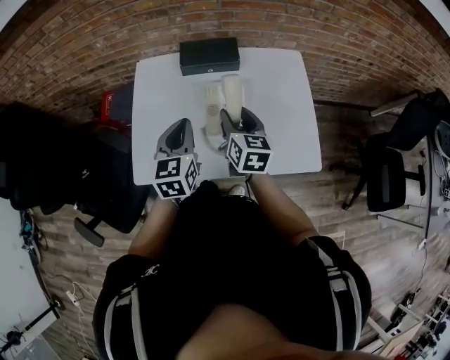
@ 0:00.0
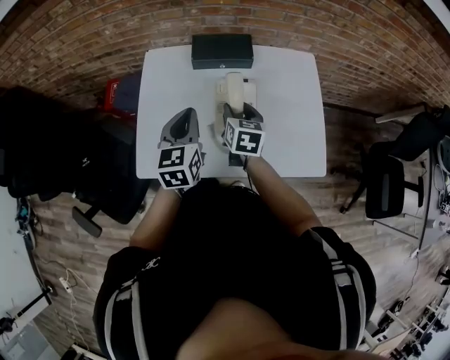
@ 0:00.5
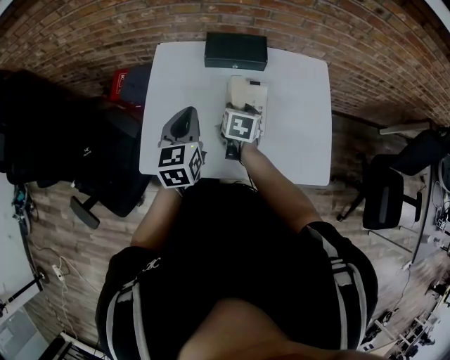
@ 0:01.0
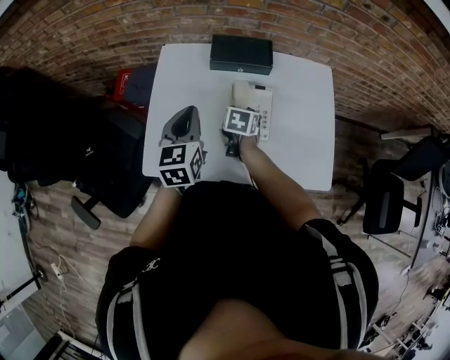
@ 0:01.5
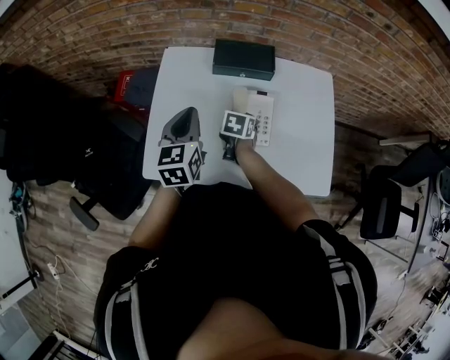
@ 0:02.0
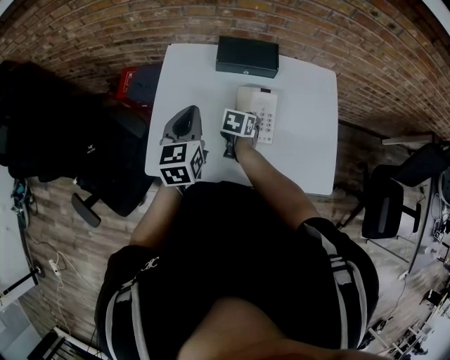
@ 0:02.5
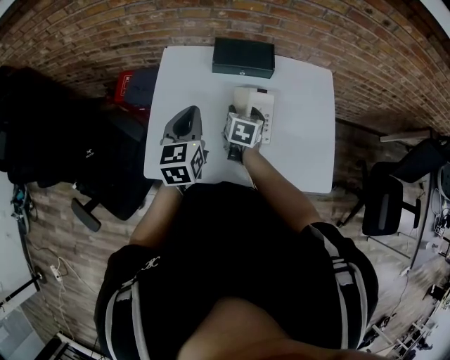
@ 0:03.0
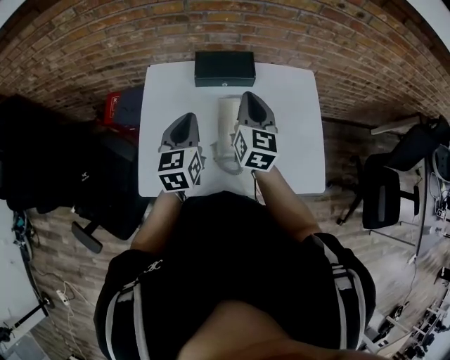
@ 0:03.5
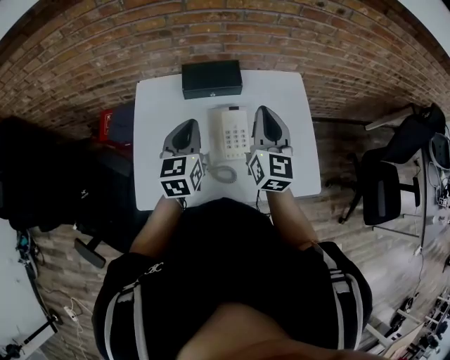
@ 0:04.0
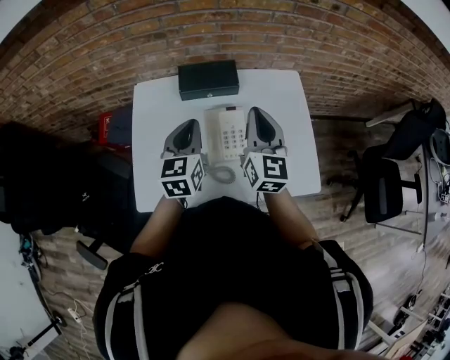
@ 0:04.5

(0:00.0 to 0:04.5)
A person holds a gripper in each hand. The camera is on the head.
0:00.0 - 0:02.0: The left gripper shifts roughly 10 cm to the left and forward; the right gripper moves downward and forward, roughly 20 cm, and tilts its fingers some 30 degrees downward.
0:02.0 - 0:04.5: The left gripper goes approximately 10 cm to the right; the right gripper moves upward and to the right, approximately 30 cm, points its fingers about 50 degrees further upward, and closes its fingers.

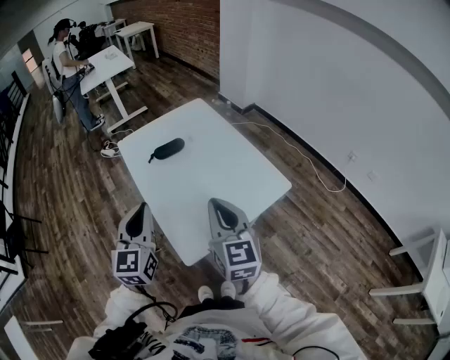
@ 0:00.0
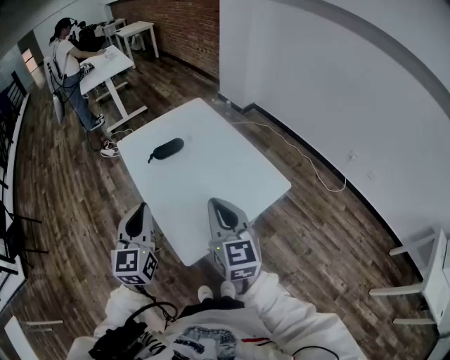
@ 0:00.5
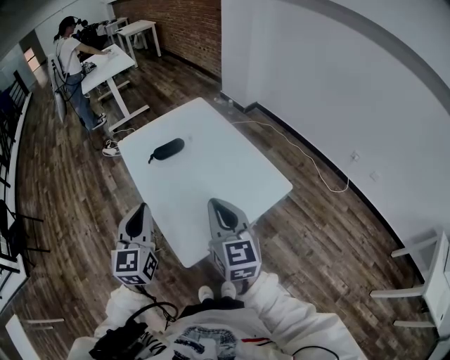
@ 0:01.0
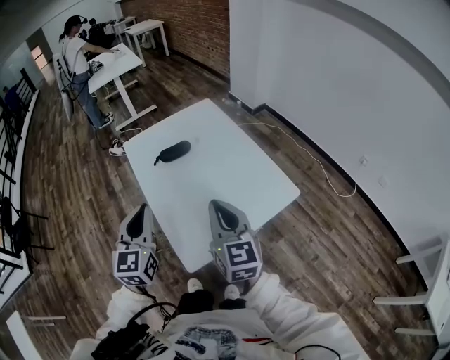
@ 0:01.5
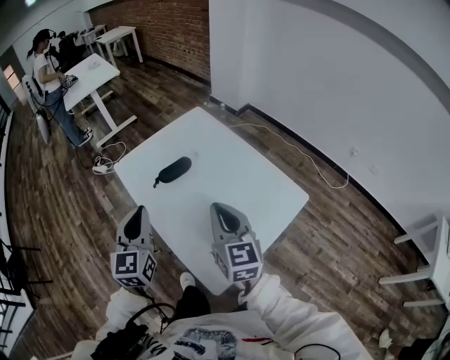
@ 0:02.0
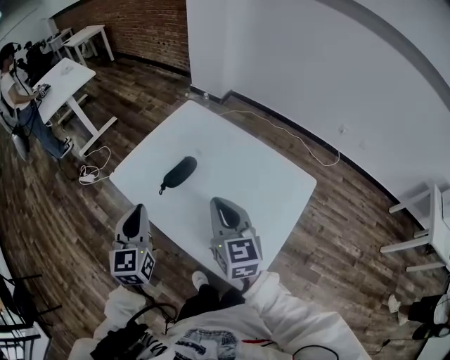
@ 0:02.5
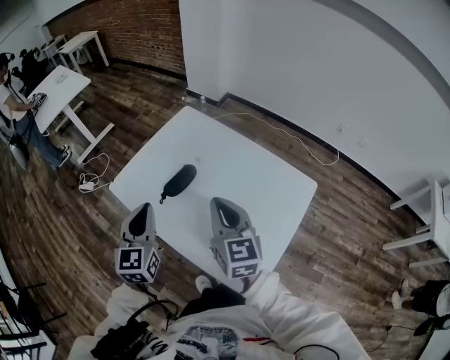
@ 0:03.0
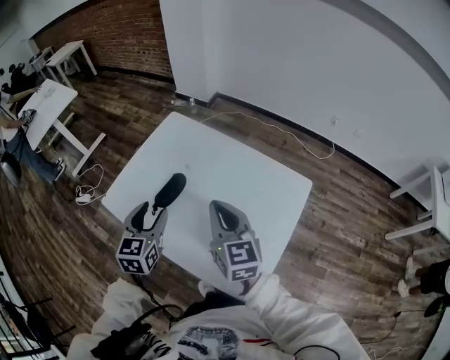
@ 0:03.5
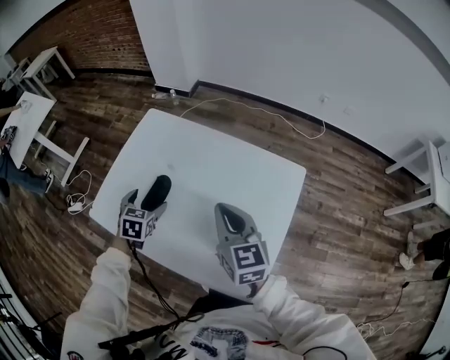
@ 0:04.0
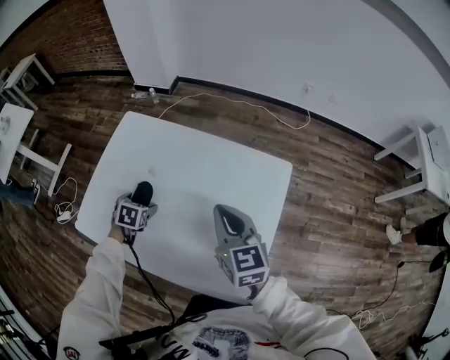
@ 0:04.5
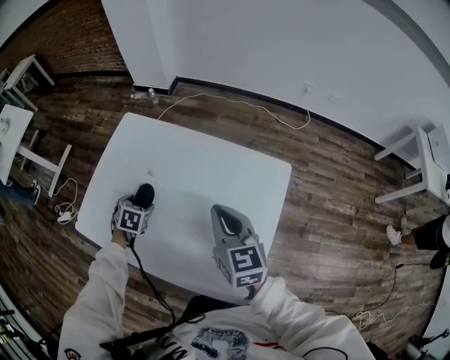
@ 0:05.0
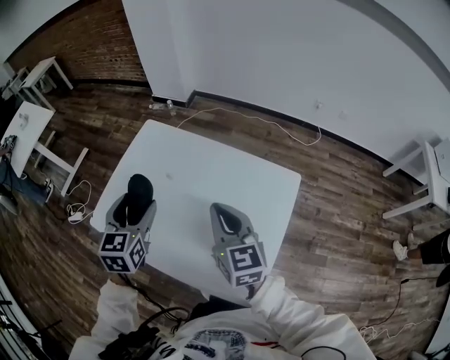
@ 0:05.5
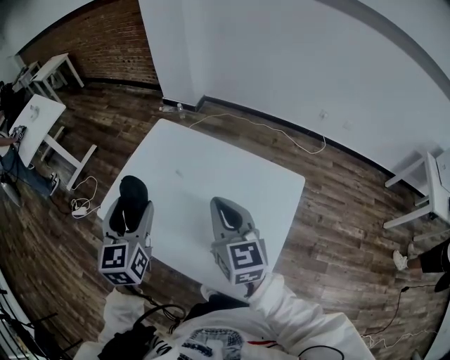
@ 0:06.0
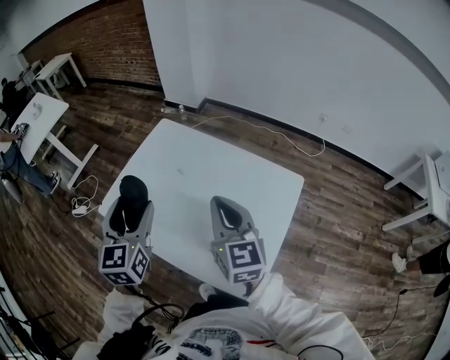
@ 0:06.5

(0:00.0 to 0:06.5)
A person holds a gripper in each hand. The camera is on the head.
0:00.0 - 0:02.0: The grippers both shift forward and to the left by about 15 cm.
0:02.0 - 0:04.5: The right gripper ends up roughly 15 cm from where it was, and changes its angle by some 30 degrees. Meanwhile the left gripper travels downward by roughly 30 cm, points its fingers approximately 60 degrees further downward, and opens up.
0:04.5 - 0:06.5: The left gripper heads upward, covering some 35 cm, and tips its fingers upward by about 50 degrees. The right gripper shifts about 10 cm upward and to the left.

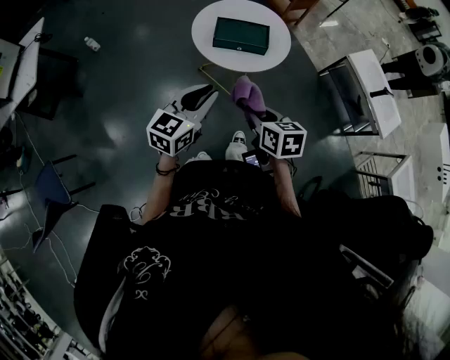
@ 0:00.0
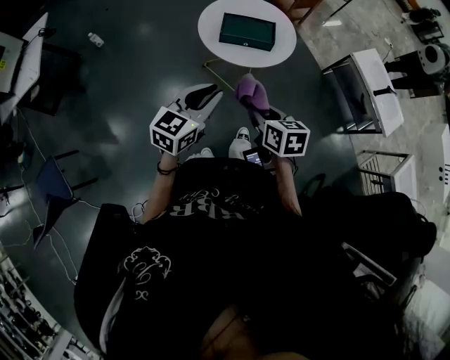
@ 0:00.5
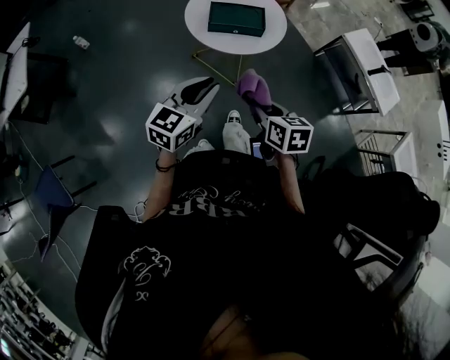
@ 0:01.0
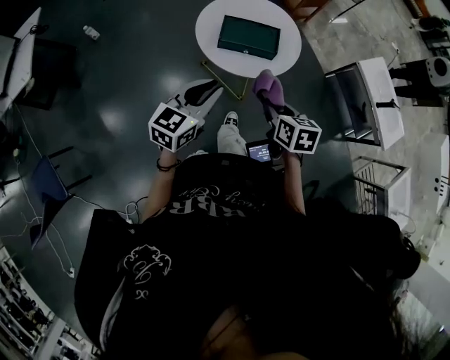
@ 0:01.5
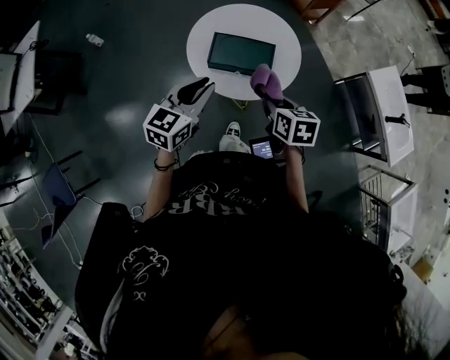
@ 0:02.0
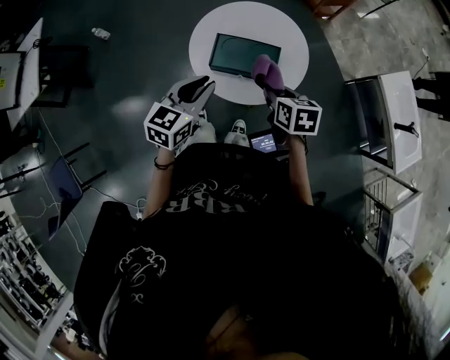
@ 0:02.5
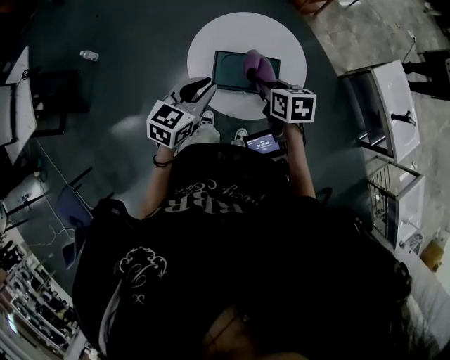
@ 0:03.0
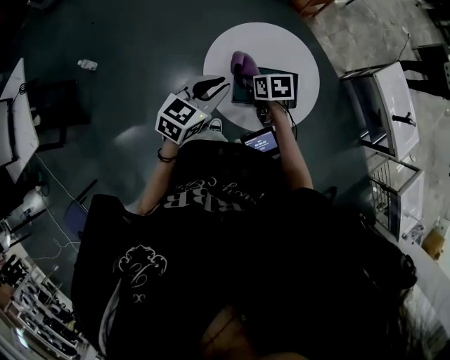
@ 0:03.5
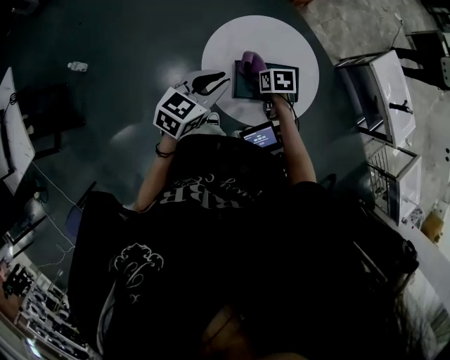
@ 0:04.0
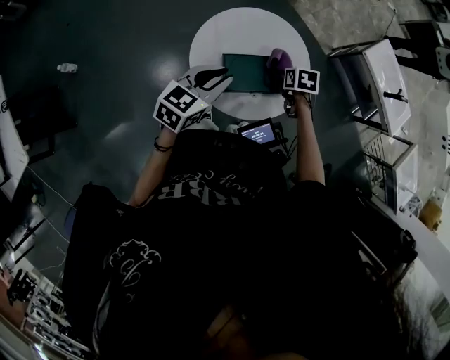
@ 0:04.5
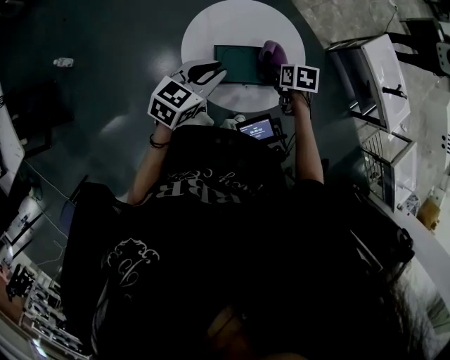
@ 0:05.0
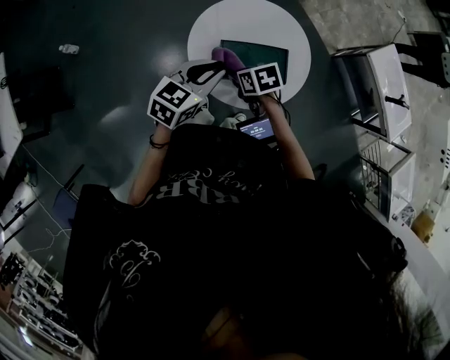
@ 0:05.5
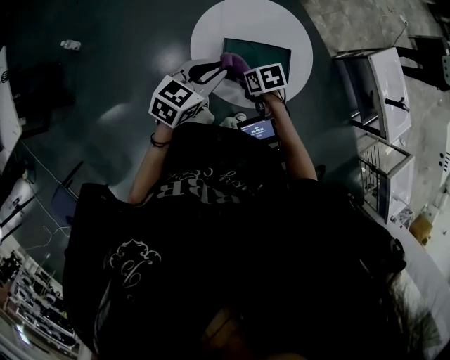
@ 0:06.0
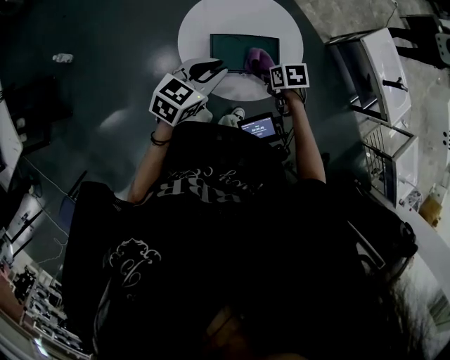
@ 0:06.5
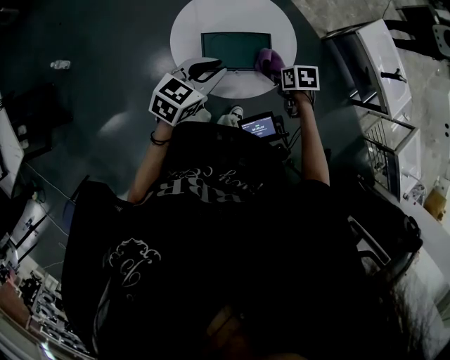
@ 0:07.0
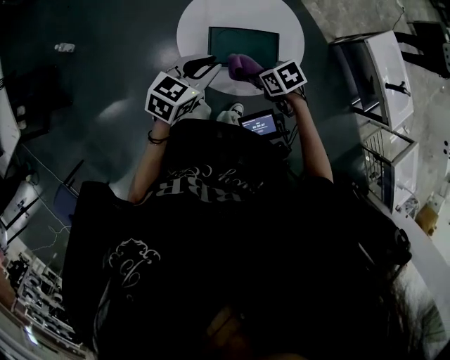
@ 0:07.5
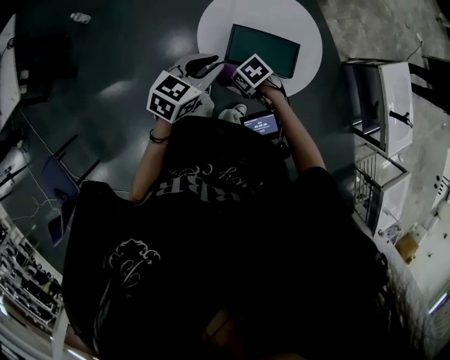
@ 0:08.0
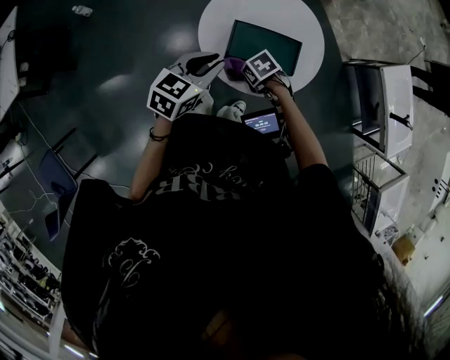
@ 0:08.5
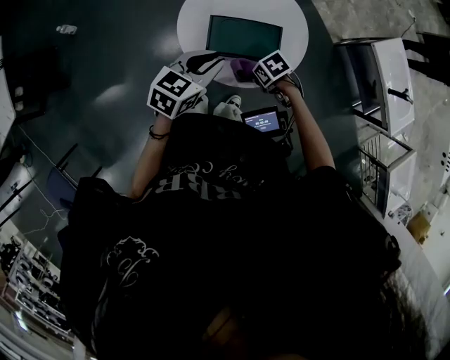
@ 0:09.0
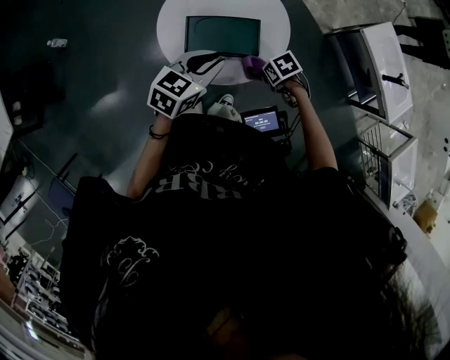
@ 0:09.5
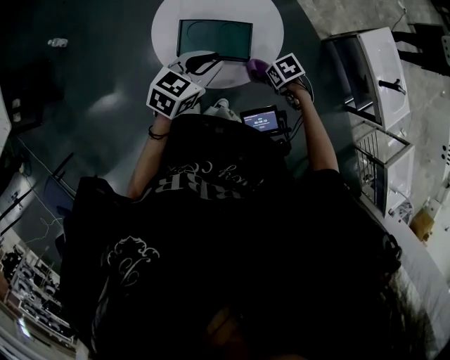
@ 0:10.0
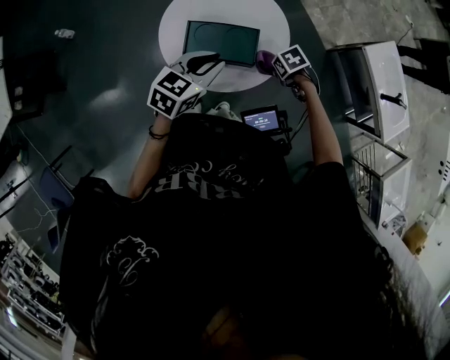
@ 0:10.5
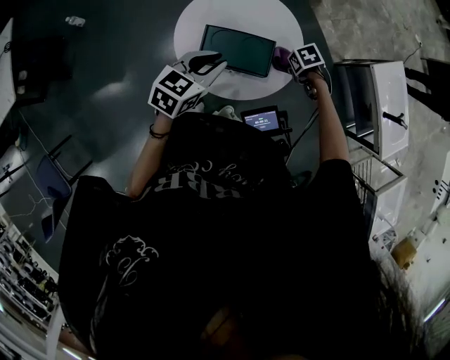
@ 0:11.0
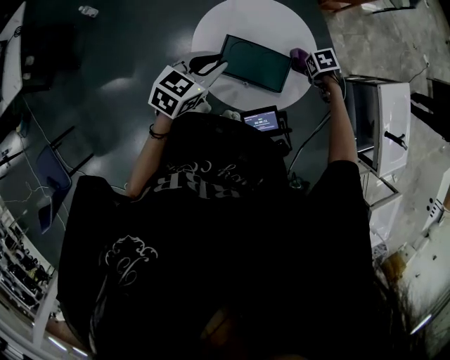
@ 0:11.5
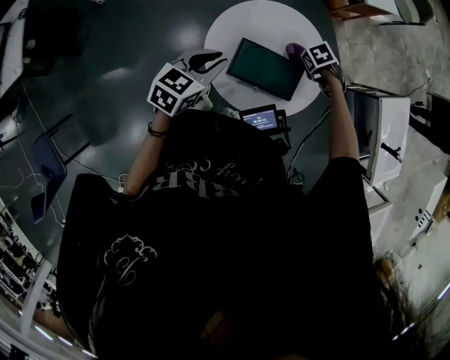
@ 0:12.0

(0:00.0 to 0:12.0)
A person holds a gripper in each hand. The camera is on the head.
0:00.0 - 0:02.0: Both grippers move forward, approximately 20 cm.
0:02.0 - 0:04.0: The right gripper heads forward, downward and to the left, covering about 30 cm, and swivels some 20 degrees. Meanwhile the left gripper travels forward and to the left by about 20 cm, and swivels some 20 degrees.
0:06.0 - 0:08.0: The right gripper changes its angle by about 30 degrees.
0:08.0 - 0:10.0: The left gripper moves some 15 cm. The right gripper changes place by about 25 cm, and rotates about 20 degrees.
0:10.0 - 0:12.0: The left gripper changes place by approximately 20 cm. Meanwhile the right gripper changes place by about 25 cm, and swivels about 20 degrees.

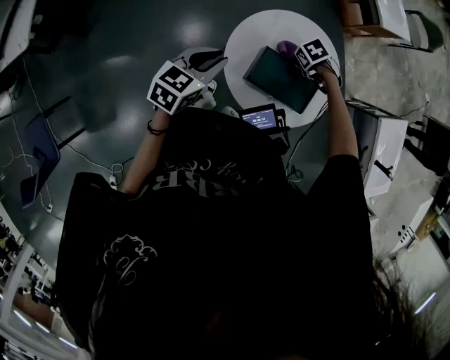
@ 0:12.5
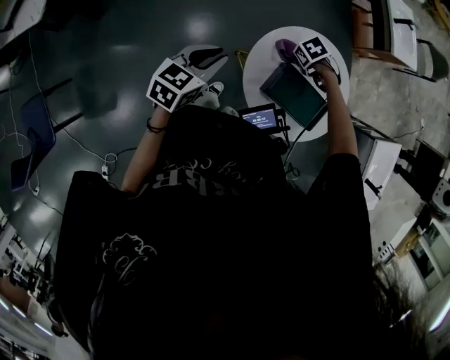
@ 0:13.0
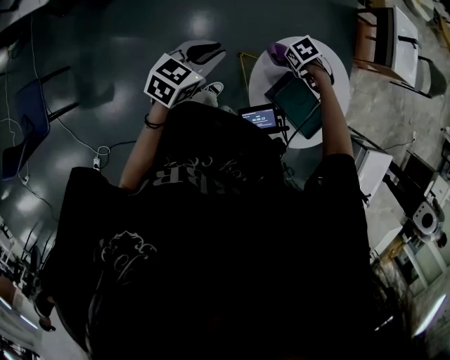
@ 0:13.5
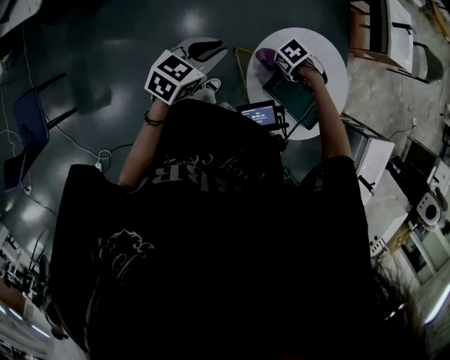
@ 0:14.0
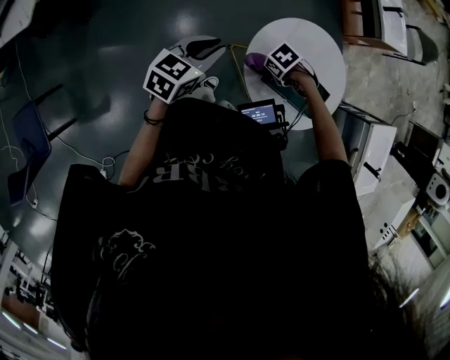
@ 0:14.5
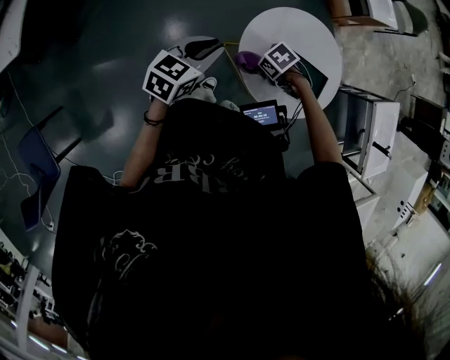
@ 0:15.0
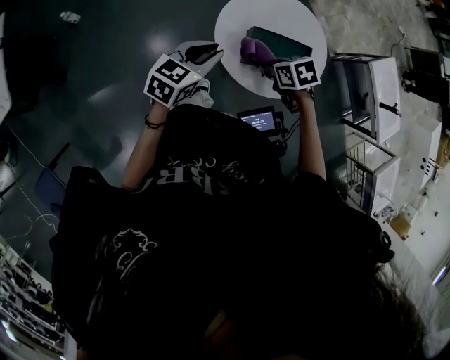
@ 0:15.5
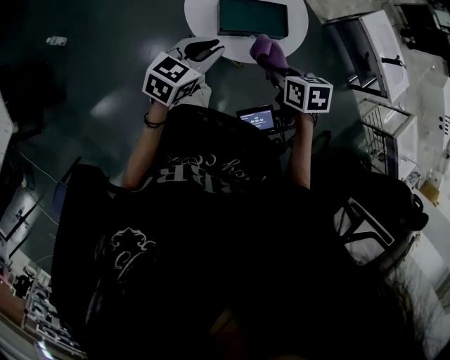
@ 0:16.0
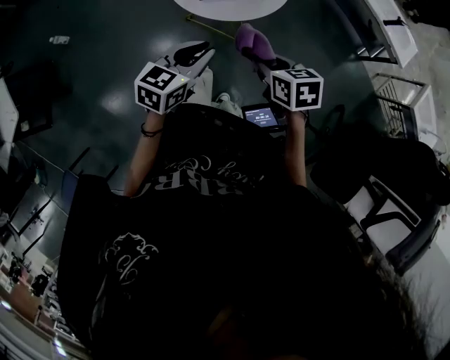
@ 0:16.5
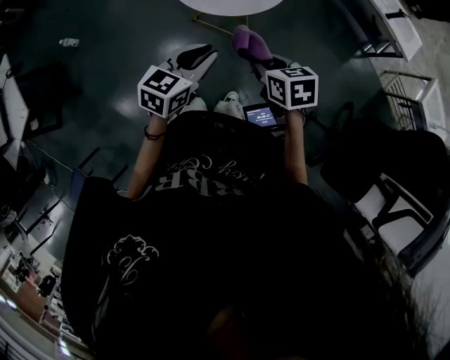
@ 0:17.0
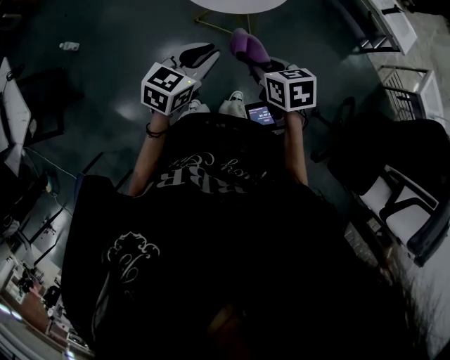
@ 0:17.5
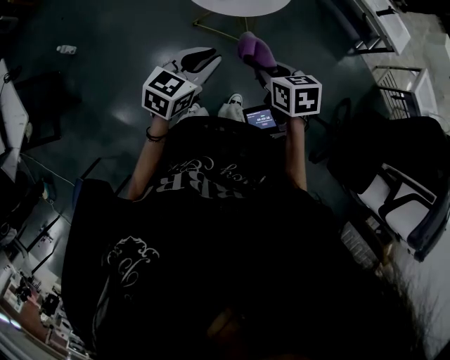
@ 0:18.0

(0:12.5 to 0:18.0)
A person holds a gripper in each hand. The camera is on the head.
0:12.5 - 0:14.5: The left gripper shifts by some 10 cm. The right gripper moves approximately 20 cm.
0:14.5 - 0:16.0: The left gripper shifts by about 20 cm, and turns by approximately 30 degrees. Meanwhile the right gripper moves roughly 30 cm, and changes its angle by about 80 degrees.
0:16.0 - 0:18.0: Both grippers travel together backward, some 25 cm.
